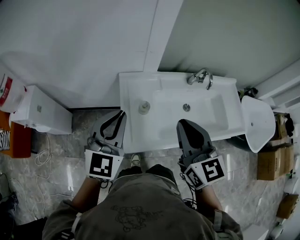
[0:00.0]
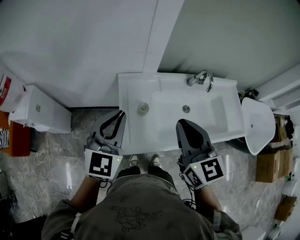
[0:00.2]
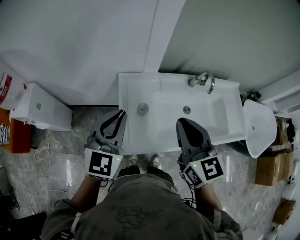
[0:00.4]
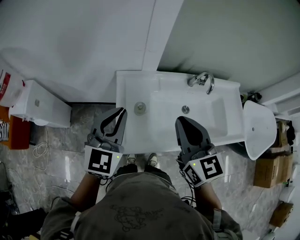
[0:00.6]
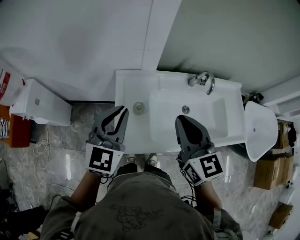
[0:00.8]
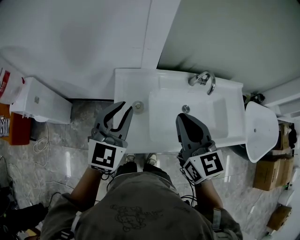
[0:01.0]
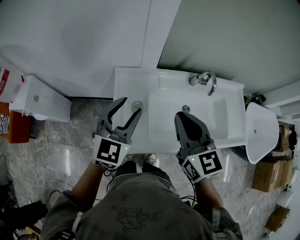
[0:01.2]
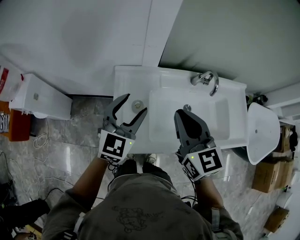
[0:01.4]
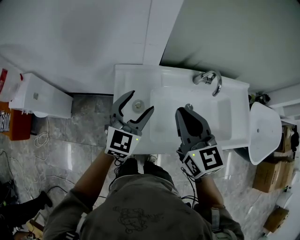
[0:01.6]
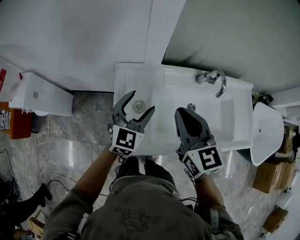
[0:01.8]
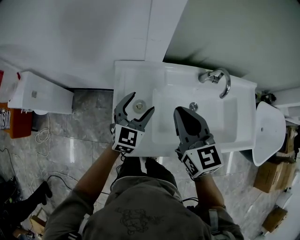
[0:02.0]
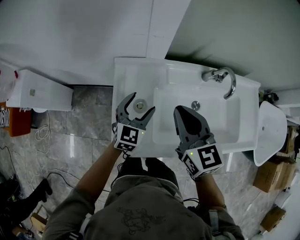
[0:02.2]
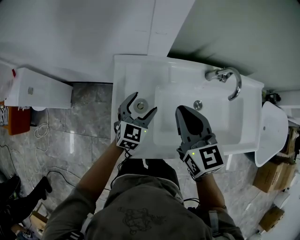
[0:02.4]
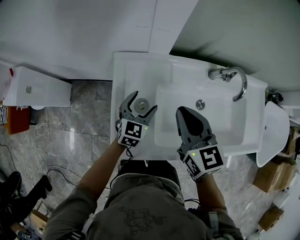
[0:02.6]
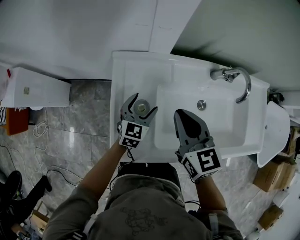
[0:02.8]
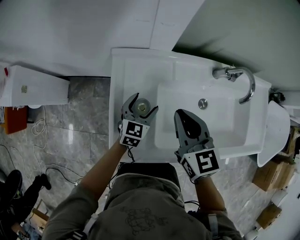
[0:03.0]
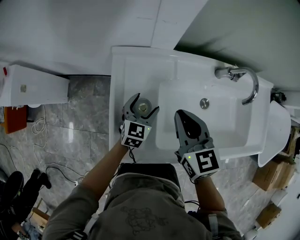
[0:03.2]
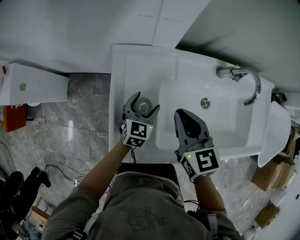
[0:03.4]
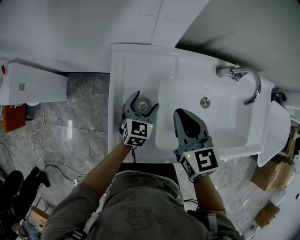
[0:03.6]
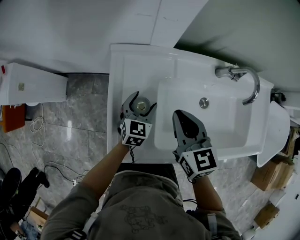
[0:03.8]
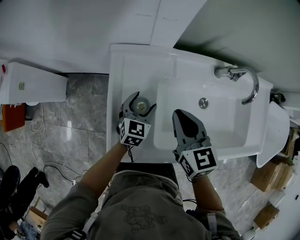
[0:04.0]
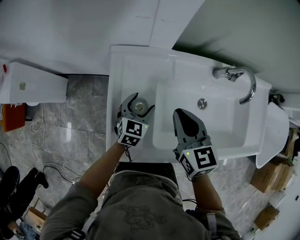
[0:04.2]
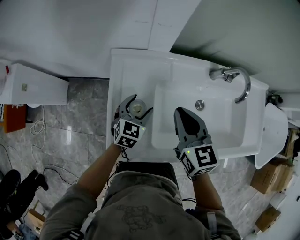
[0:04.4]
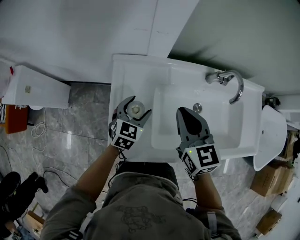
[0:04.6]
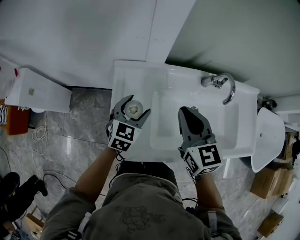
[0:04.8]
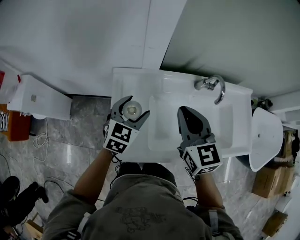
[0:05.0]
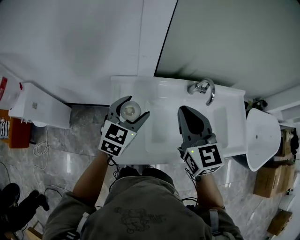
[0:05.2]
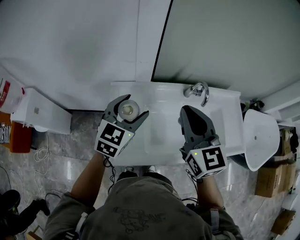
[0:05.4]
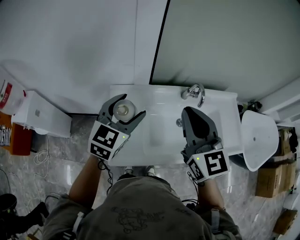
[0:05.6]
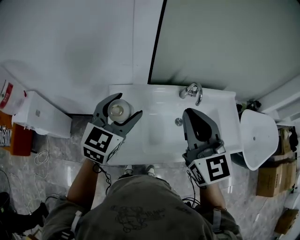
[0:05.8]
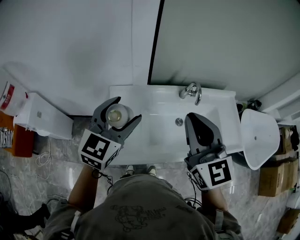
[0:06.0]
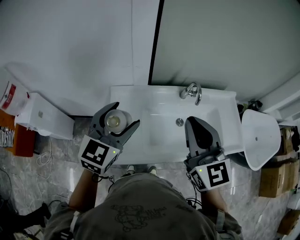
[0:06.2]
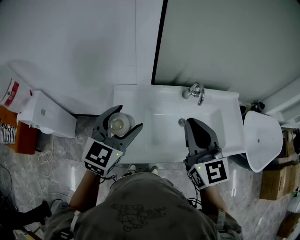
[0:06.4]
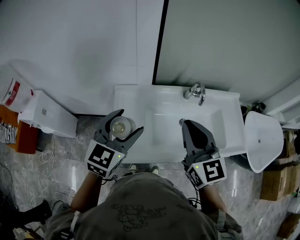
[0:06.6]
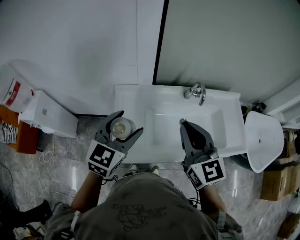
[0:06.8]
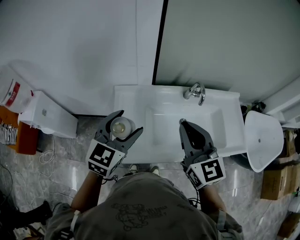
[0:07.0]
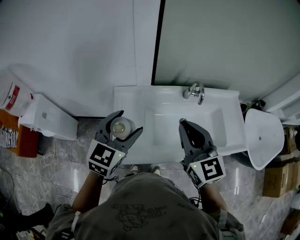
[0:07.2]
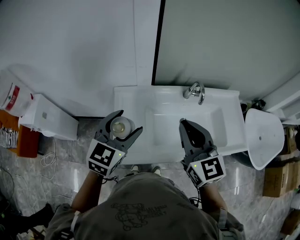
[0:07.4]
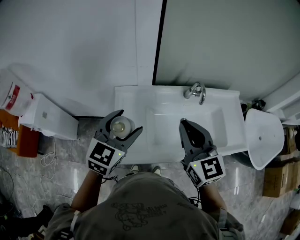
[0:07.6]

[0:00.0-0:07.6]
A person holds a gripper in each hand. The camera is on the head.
0.0 to 1.6 s: The left gripper moves to the right, forward and downward, some 20 cm, and opens. The right gripper travels forward, downward and to the right by approximately 15 cm.
1.6 to 3.0 s: The left gripper shifts roughly 25 cm downward, and rotates approximately 20 degrees. Meanwhile the right gripper moves downward and forward, approximately 15 cm.
3.0 to 4.6 s: The left gripper moves upward, approximately 5 cm.
4.6 to 6.0 s: The left gripper travels upward by approximately 35 cm, and turns by some 20 degrees. The right gripper is displaced upward and backward by about 25 cm, and turns by approximately 20 degrees.
6.0 to 7.6 s: The left gripper shifts by about 5 cm. Meanwhile the right gripper is displaced downward by roughly 5 cm.

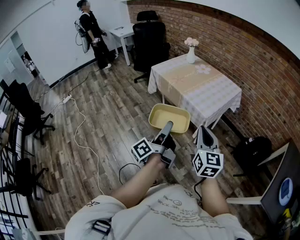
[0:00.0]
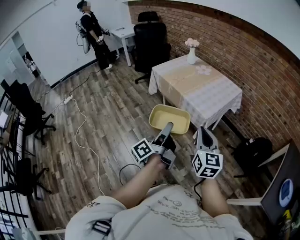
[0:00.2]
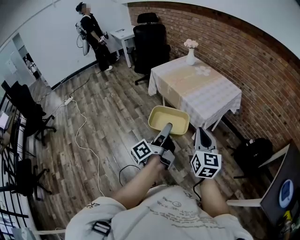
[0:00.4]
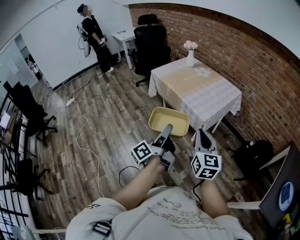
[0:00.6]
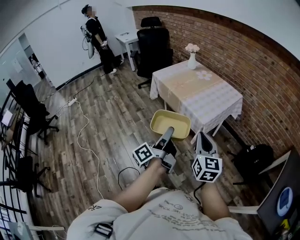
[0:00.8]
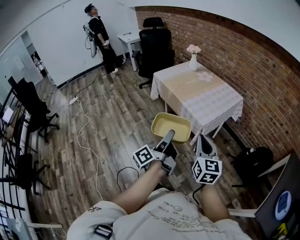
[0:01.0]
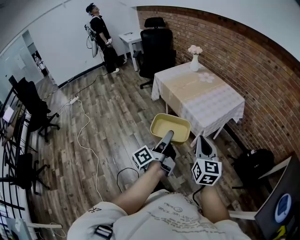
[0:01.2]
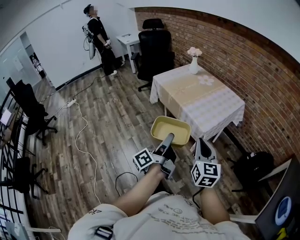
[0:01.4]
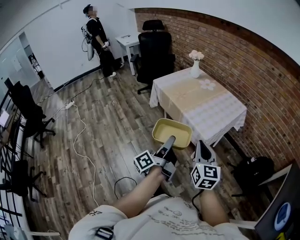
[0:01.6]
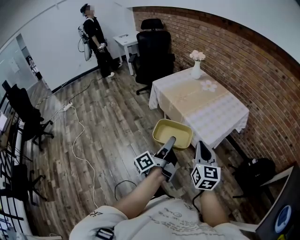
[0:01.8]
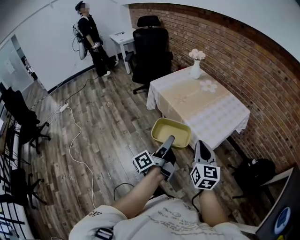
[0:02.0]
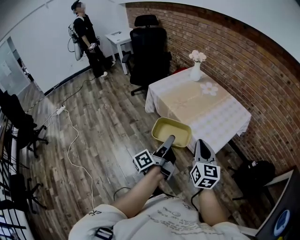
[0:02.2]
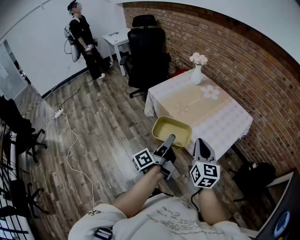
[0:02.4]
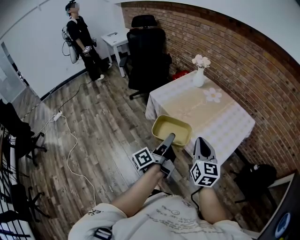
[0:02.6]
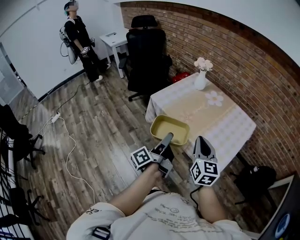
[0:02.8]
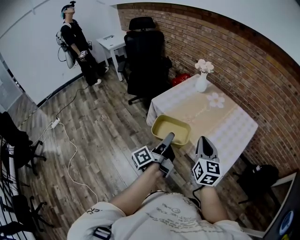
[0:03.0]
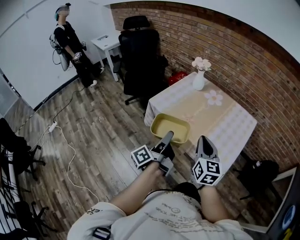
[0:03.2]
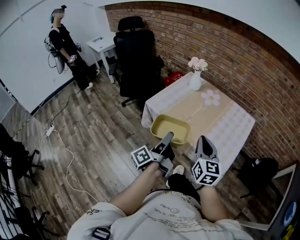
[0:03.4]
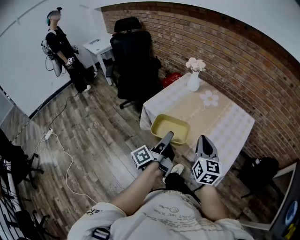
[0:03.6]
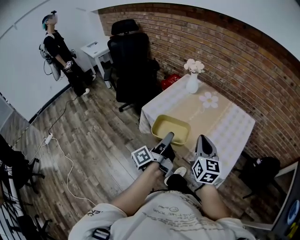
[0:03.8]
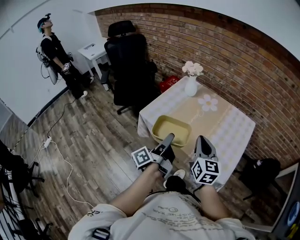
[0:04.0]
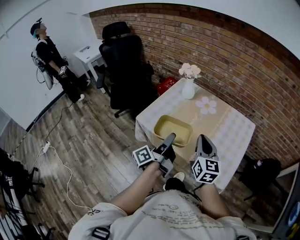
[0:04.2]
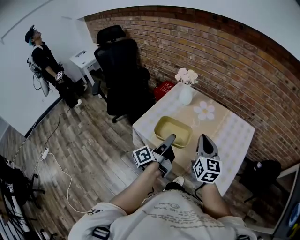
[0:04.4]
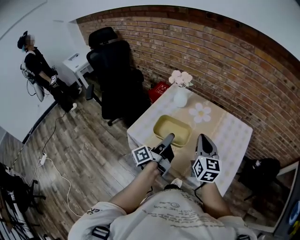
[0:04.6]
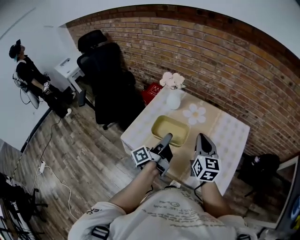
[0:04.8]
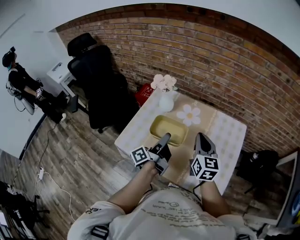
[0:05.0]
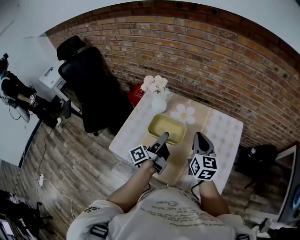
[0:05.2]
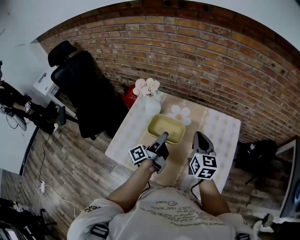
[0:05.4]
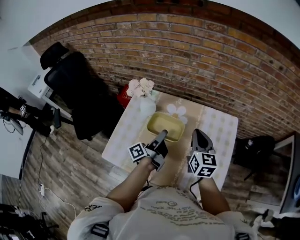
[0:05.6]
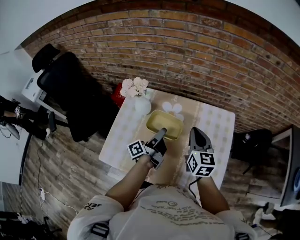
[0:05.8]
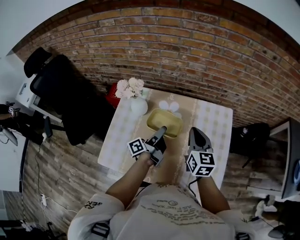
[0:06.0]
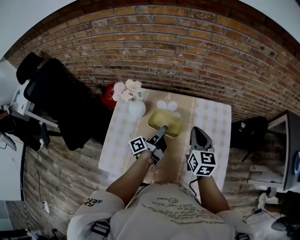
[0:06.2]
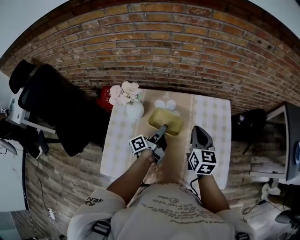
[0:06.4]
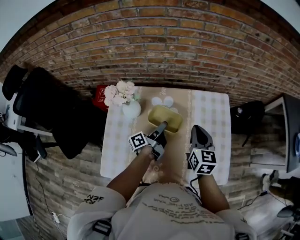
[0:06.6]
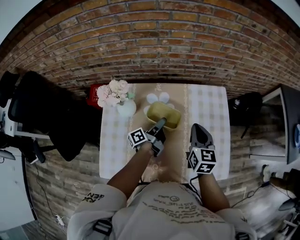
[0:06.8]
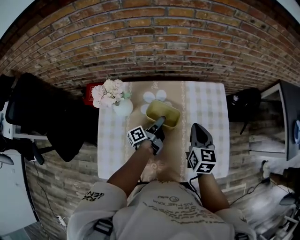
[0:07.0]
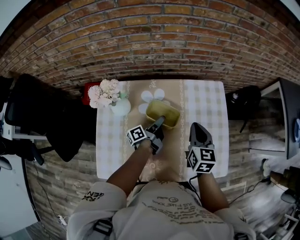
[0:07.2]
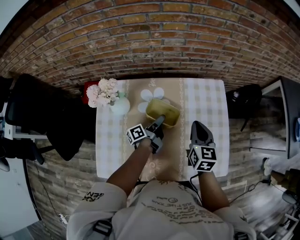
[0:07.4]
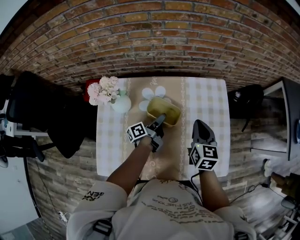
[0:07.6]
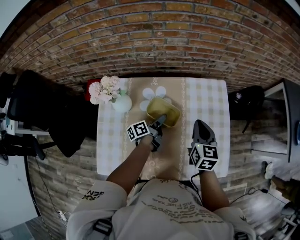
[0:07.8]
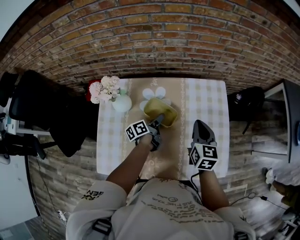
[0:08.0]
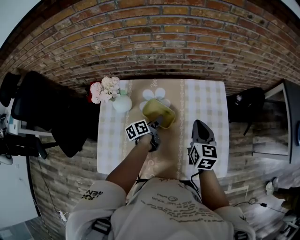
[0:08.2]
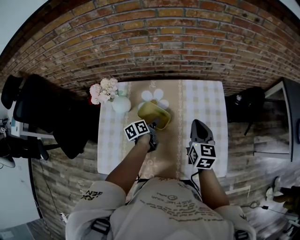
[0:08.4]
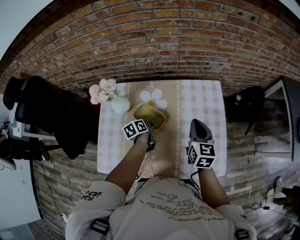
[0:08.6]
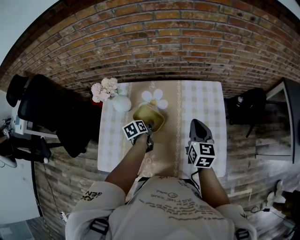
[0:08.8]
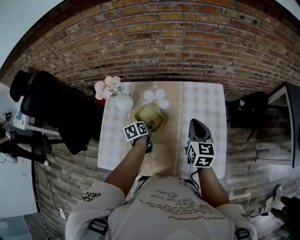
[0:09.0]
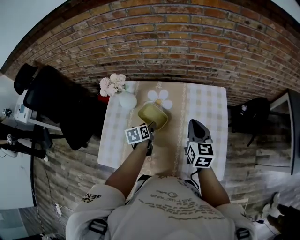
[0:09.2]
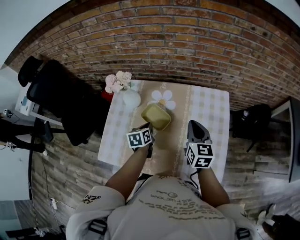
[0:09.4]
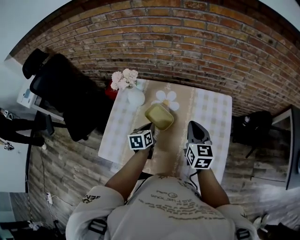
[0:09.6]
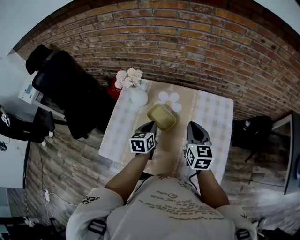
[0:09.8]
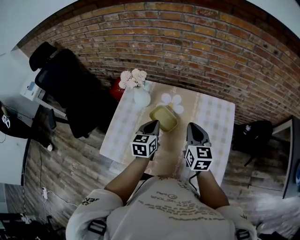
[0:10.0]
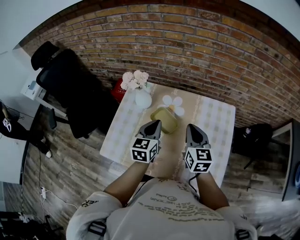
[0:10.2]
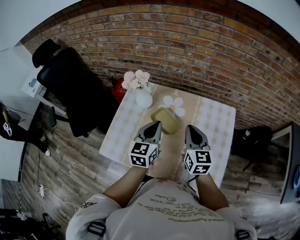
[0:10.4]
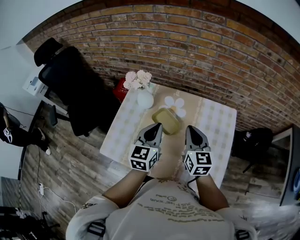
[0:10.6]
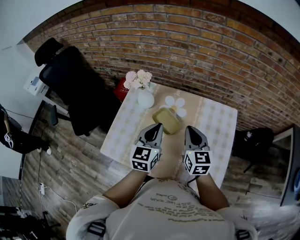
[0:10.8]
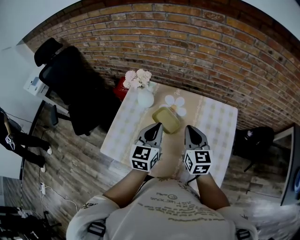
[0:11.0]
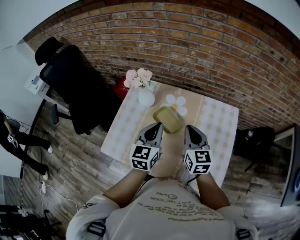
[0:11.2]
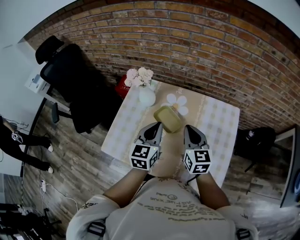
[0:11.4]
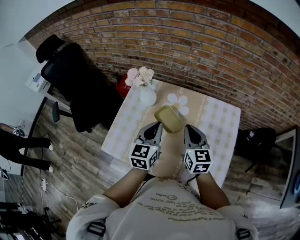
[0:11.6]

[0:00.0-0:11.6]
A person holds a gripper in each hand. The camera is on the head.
0.0 to 1.4 s: The right gripper ends up about 5 cm from where it was. The left gripper travels to the right by about 5 cm.
1.4 to 2.8 s: The grippers both shift forward and to the left by approximately 40 cm.
2.8 to 4.4 s: Both grippers move forward, about 25 cm.
4.4 to 5.8 s: The grippers both shift forward by approximately 25 cm. The left gripper turns by roughly 20 degrees.
5.8 to 7.2 s: The left gripper goes approximately 15 cm downward and forward, and changes its angle by roughly 30 degrees; the right gripper moves downward, some 5 cm, and turns by about 20 degrees.
7.2 to 8.8 s: The left gripper is displaced to the left and backward by roughly 10 cm, angles its fingers downward, by about 50 degrees, and opens up.
8.8 to 10.2 s: The right gripper moves to the left, about 10 cm, and rotates roughly 20 degrees, while the left gripper shifts roughly 20 cm upward, tips its fingers upward by some 30 degrees, and closes up.
10.2 to 11.6 s: The grippers stay close to where they were, moving slightly.

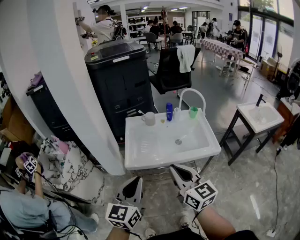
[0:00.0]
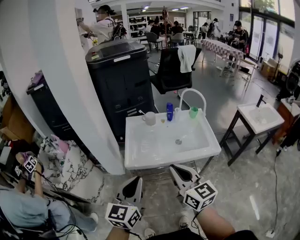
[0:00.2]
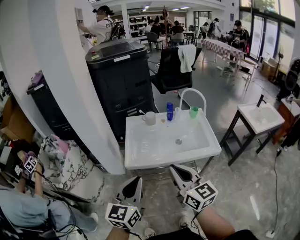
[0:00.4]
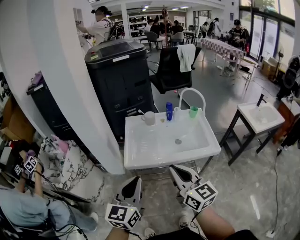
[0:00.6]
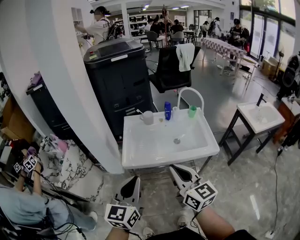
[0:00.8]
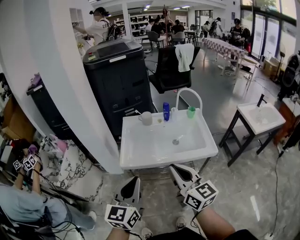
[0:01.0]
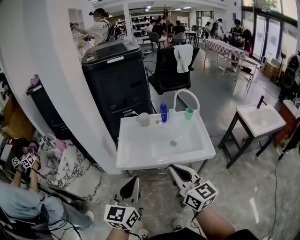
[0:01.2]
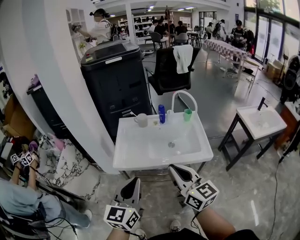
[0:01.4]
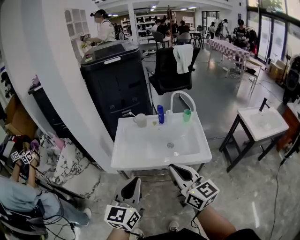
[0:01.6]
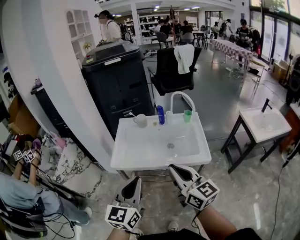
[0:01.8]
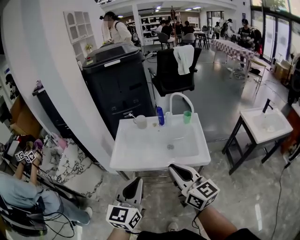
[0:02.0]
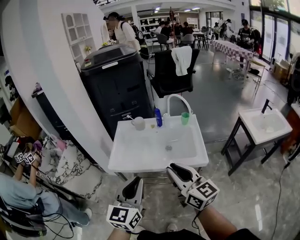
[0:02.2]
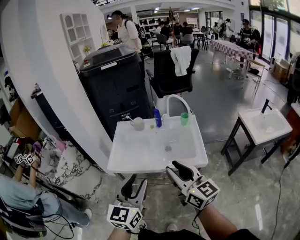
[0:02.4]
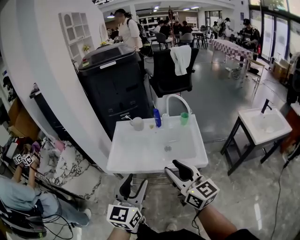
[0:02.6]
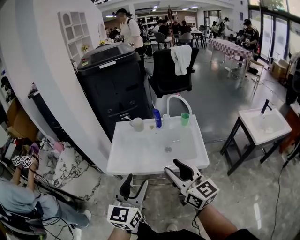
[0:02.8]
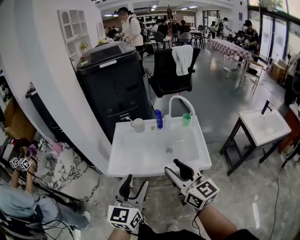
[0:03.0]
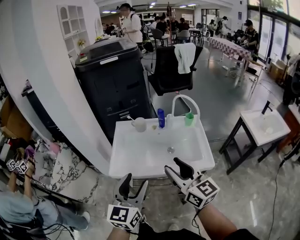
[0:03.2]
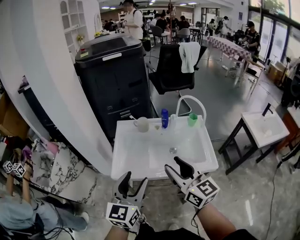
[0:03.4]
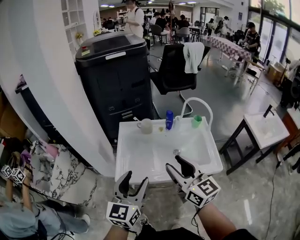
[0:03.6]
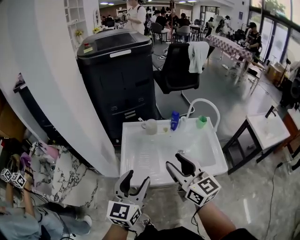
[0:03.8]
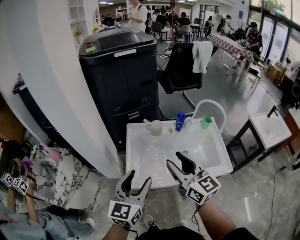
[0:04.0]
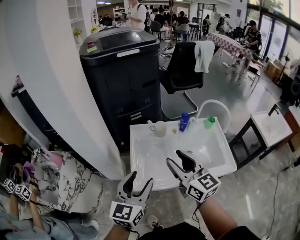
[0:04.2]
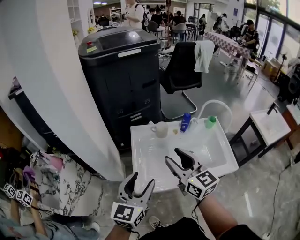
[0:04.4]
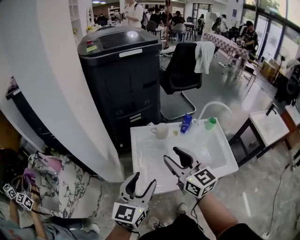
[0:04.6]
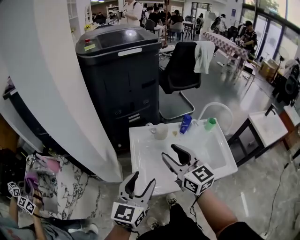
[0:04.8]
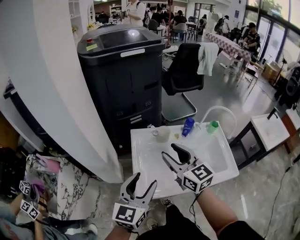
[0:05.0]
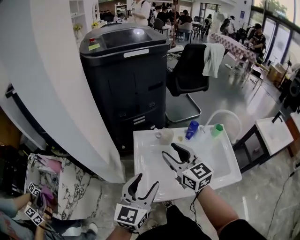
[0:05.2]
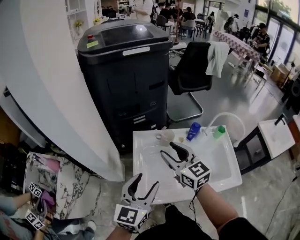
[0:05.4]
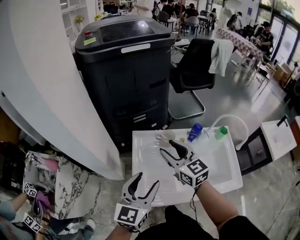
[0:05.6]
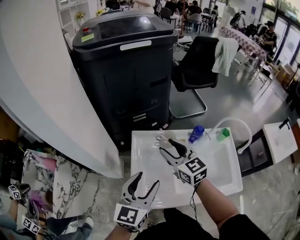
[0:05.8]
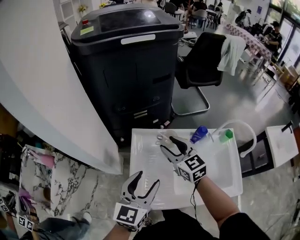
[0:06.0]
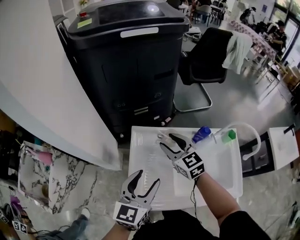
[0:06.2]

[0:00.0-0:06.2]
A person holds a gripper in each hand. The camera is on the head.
0.0 to 1.6 s: The two grippers go about 10 cm to the right.
1.6 to 3.2 s: The two grippers go some 10 cm forward. The right gripper opens its fingers. The left gripper opens.
3.2 to 4.6 s: The two grippers go approximately 25 cm to the left and forward.
4.6 to 6.2 s: The left gripper is displaced forward and downward by approximately 15 cm, while the right gripper shifts some 25 cm forward and downward, and changes its angle by approximately 20 degrees.
